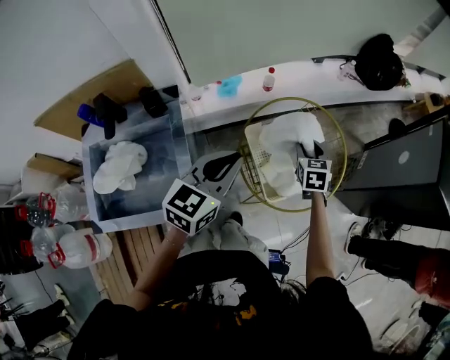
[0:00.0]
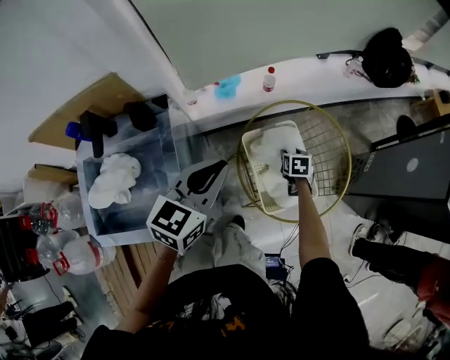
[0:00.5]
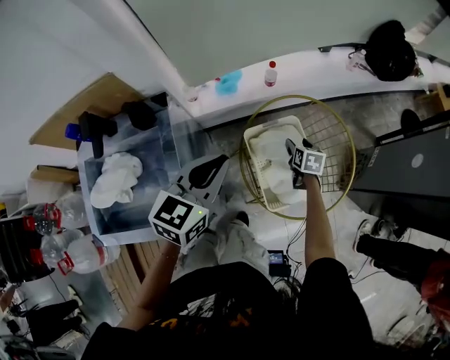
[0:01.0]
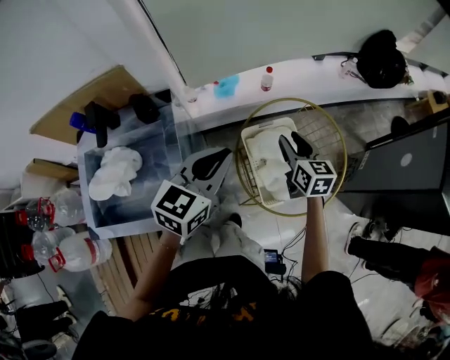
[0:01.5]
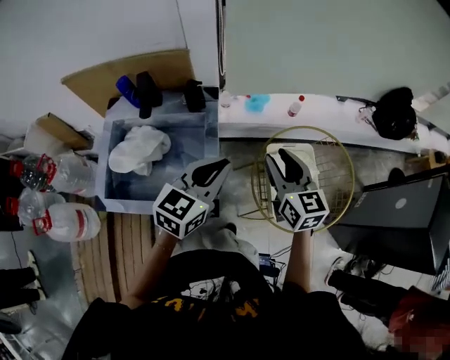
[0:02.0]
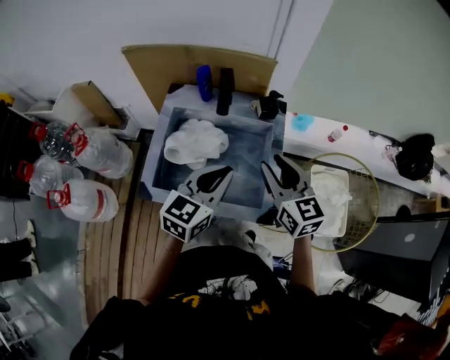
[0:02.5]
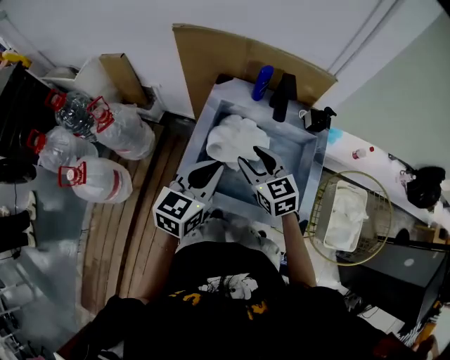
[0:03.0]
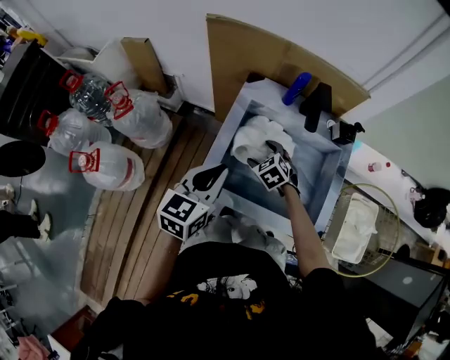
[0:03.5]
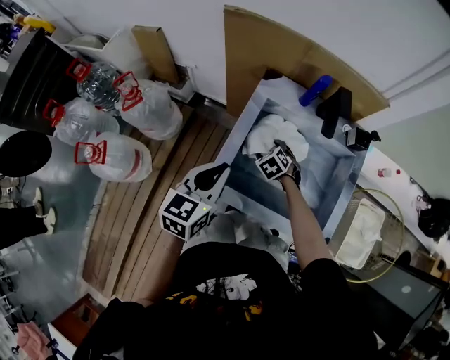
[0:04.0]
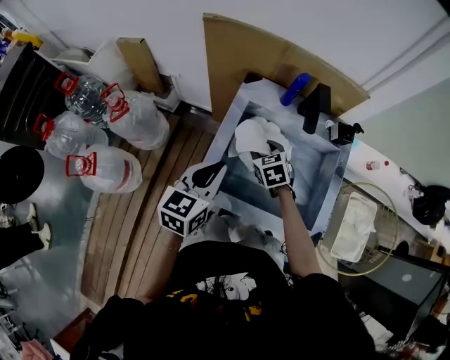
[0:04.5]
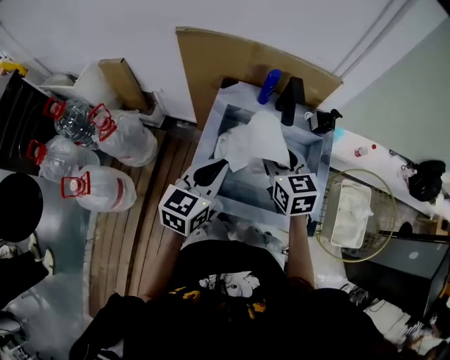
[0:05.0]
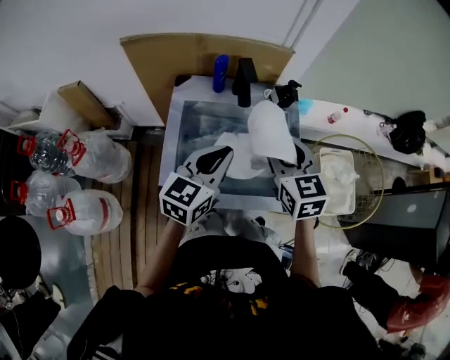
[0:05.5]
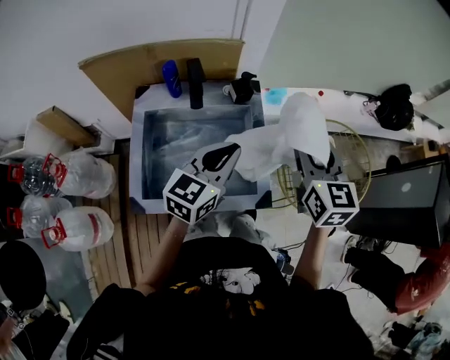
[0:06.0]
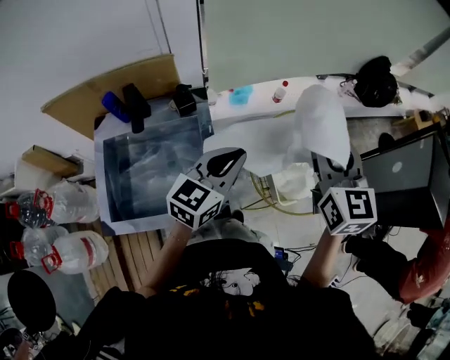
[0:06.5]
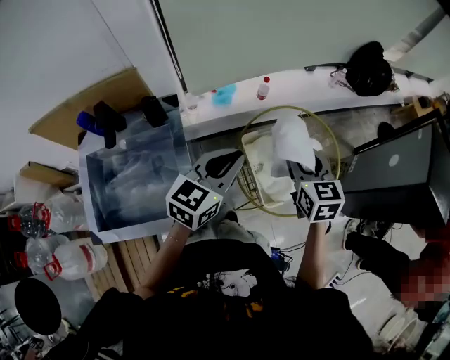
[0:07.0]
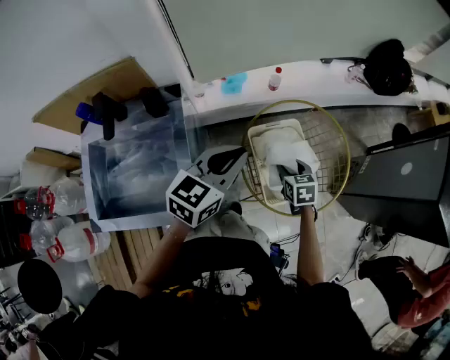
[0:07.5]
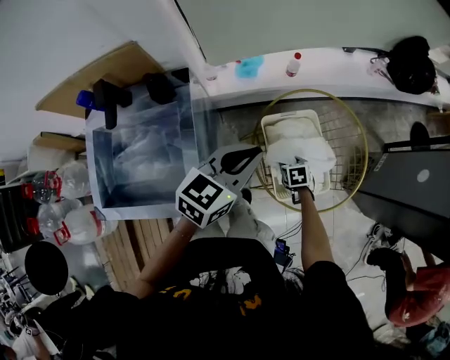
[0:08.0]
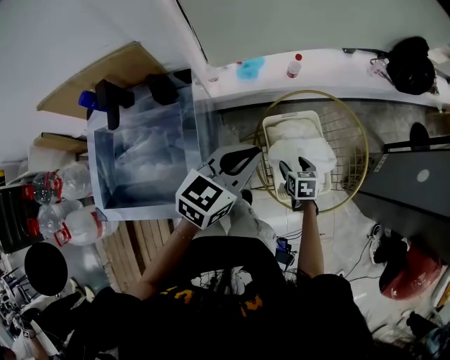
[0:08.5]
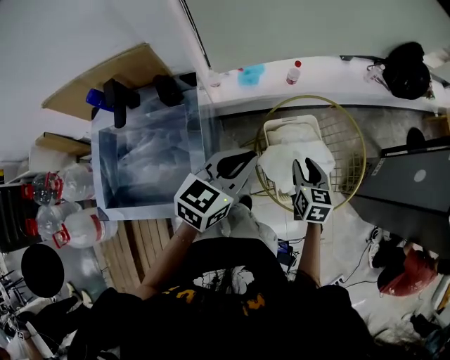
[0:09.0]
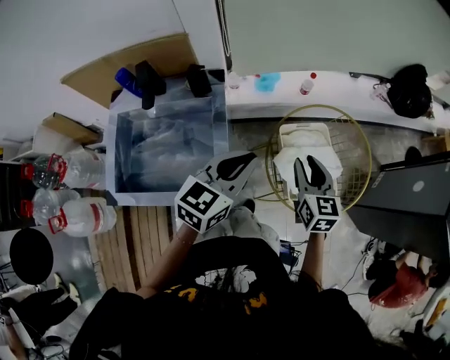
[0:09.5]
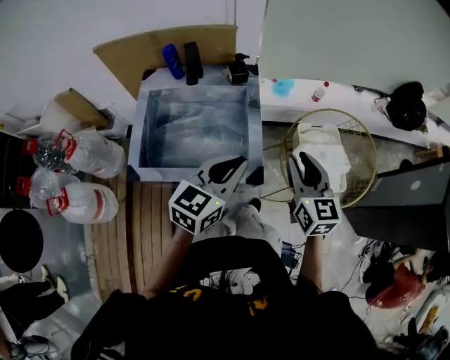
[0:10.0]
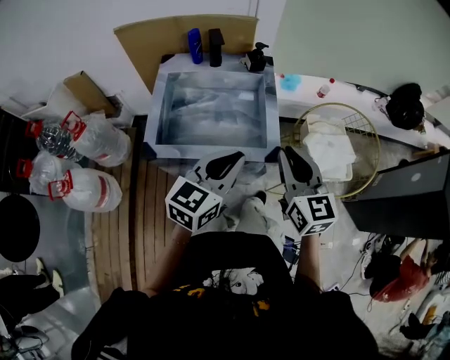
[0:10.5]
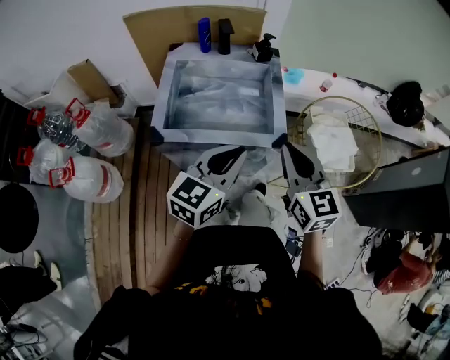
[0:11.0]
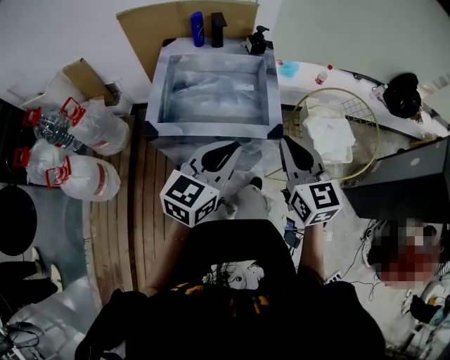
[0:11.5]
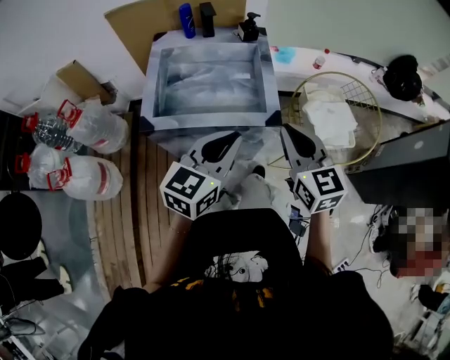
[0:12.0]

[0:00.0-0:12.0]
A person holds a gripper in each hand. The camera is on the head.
0:00.0 to 0:02.0: The right gripper shifts about 30 cm to the left, upward and backward, and changes its angle by about 40 degrees, while the left gripper is displaced to the left by about 10 cm.
0:02.0 to 0:04.0: The pair of grippers is taken some 50 cm. The right gripper tips its fingers downward by about 50 degrees, and opens its fingers; the left gripper rotates approximately 30 degrees.
0:04.0 to 0:06.0: The left gripper moves approximately 30 cm, and changes its angle by approximately 40 degrees. Meanwhile the right gripper heads upward, covering about 40 cm, tilts its fingers some 50 degrees upward, and closes.
0:06.0 to 0:08.0: The right gripper shifts about 50 cm downward and to the right, and angles its fingers downward, by approximately 50 degrees. The left gripper moves to the right and forward, about 35 cm.
0:08.0 to 0:10.0: The left gripper moves backward and to the left, approximately 30 cm. The right gripper moves upward, to the left and backward, some 50 cm, and points its fingers about 50 degrees further upward.
0:10.0 to 0:12.0: The grippers both shift backward and to the left by some 15 cm.

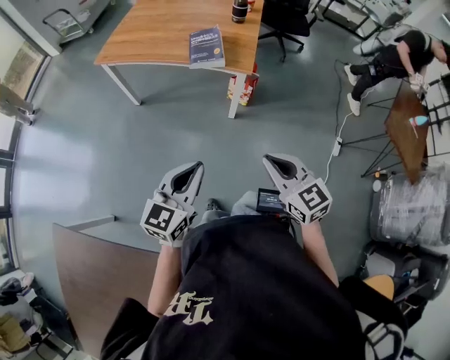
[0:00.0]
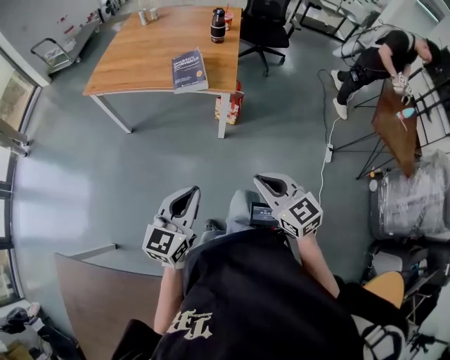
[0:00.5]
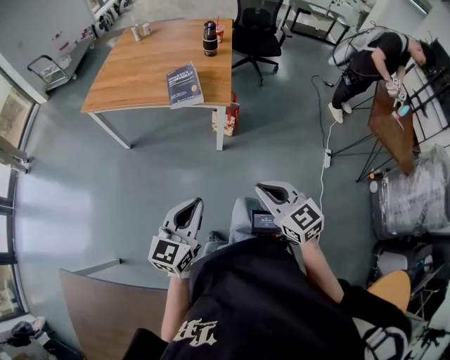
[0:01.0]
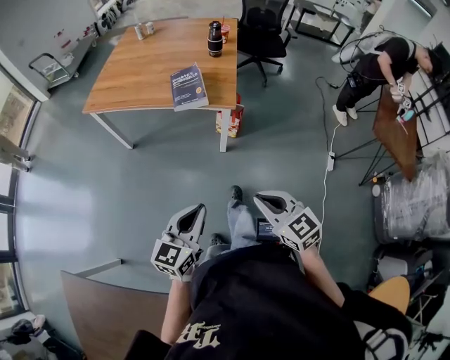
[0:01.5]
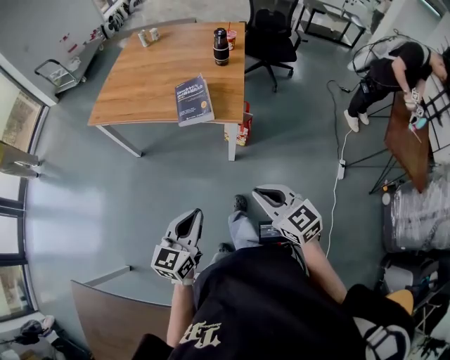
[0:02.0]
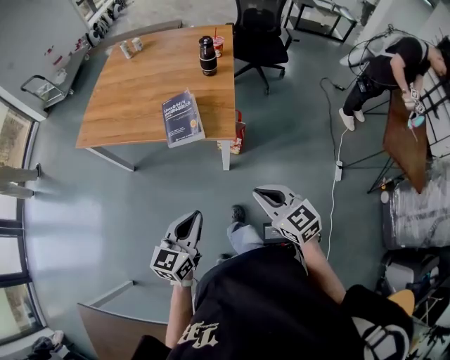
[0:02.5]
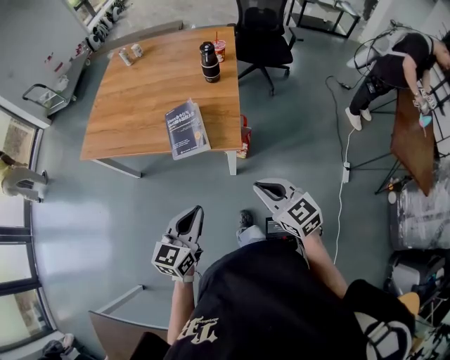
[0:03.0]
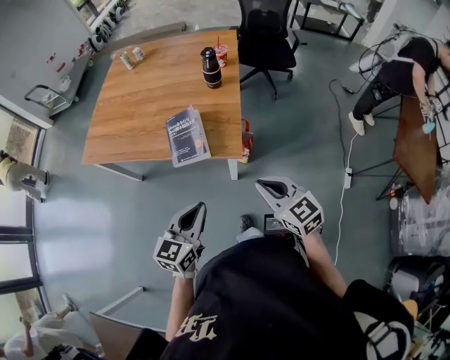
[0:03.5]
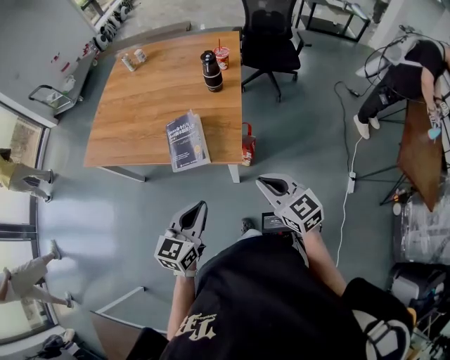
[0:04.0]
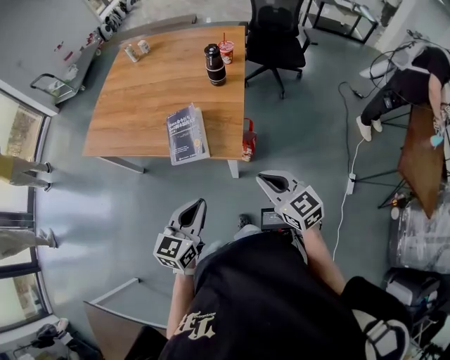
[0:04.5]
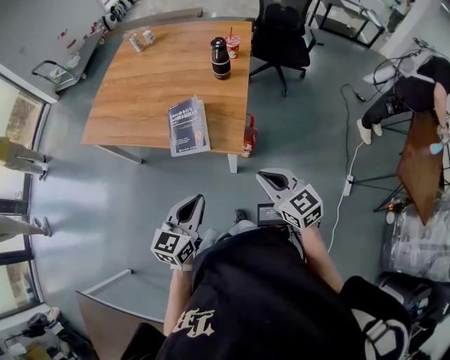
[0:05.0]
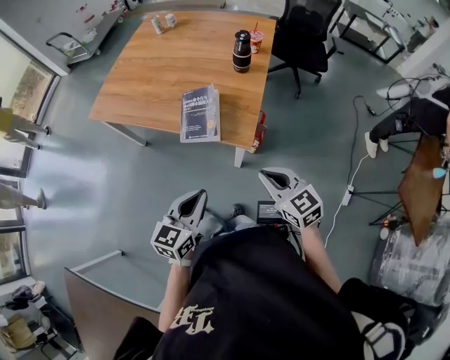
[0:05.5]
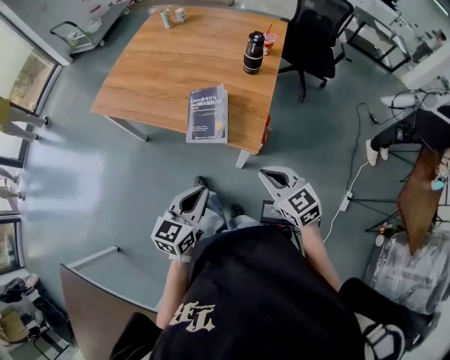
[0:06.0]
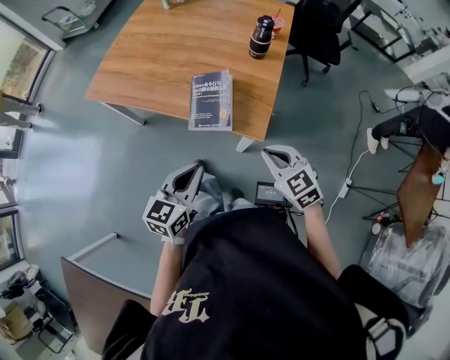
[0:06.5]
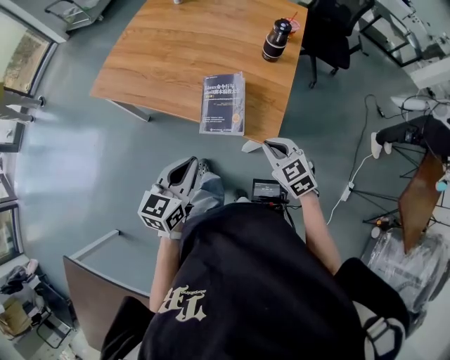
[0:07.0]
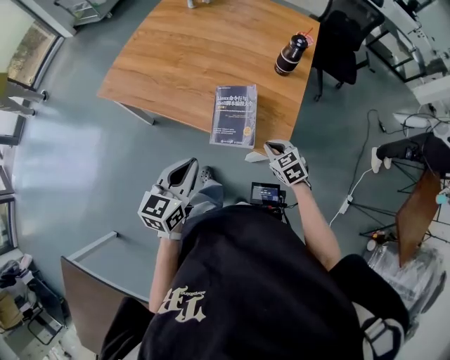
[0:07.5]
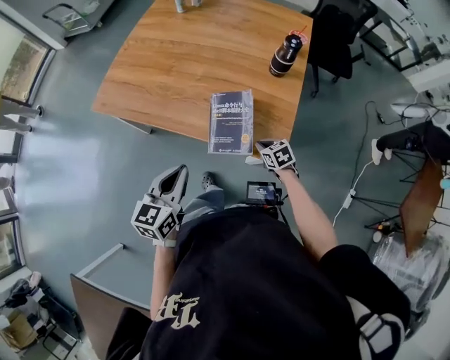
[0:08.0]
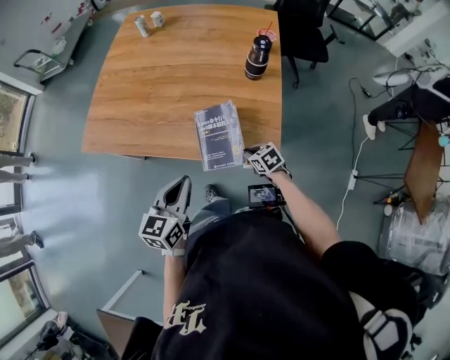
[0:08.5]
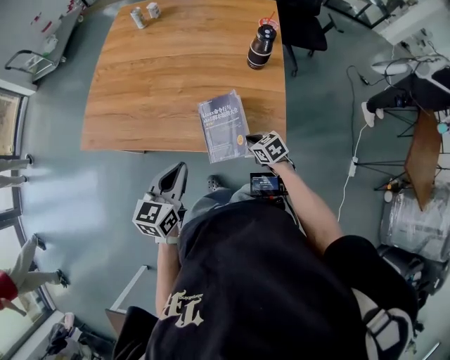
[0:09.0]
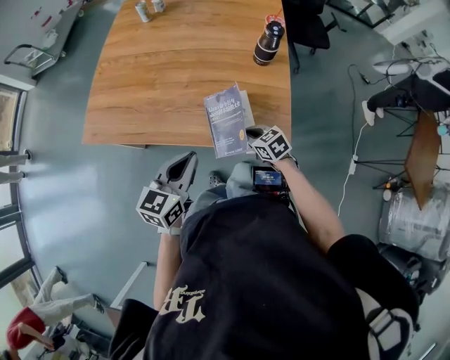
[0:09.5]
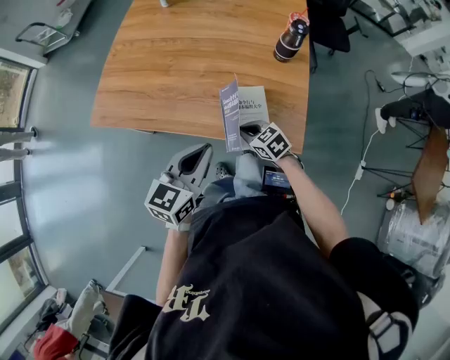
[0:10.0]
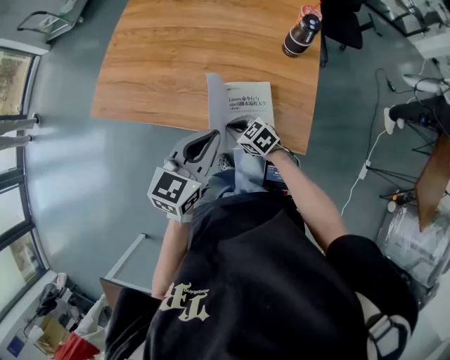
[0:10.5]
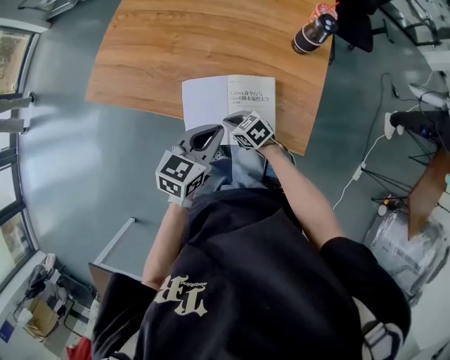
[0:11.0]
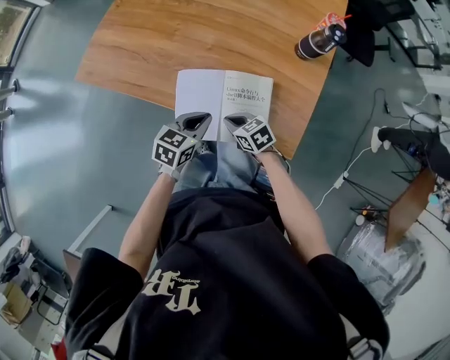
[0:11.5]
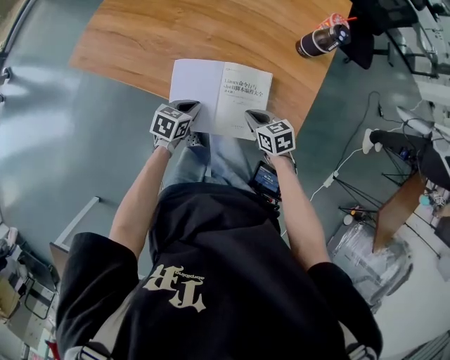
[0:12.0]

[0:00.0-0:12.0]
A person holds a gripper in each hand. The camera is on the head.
0:00.0 to 0:02.0: The grippers both shift forward by about 10 cm.
0:02.0 to 0:04.0: The two grippers go approximately 25 cm forward.
0:04.0 to 0:06.0: The right gripper goes roughly 5 cm to the left.
0:06.0 to 0:08.0: The right gripper shifts approximately 35 cm downward and forward, and turns by roughly 30 degrees, while the left gripper shifts some 25 cm forward and to the left.
0:08.0 to 0:10.0: The left gripper goes roughly 10 cm forward; the right gripper heads to the left and upward, covering roughly 15 cm.
0:10.0 to 0:12.0: The right gripper is displaced to the right and downward by about 10 cm; the left gripper heads downward, covering about 30 cm, and rotates approximately 30 degrees.

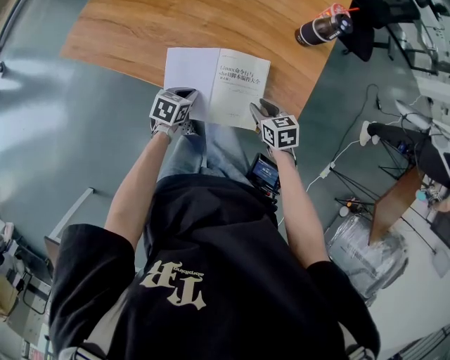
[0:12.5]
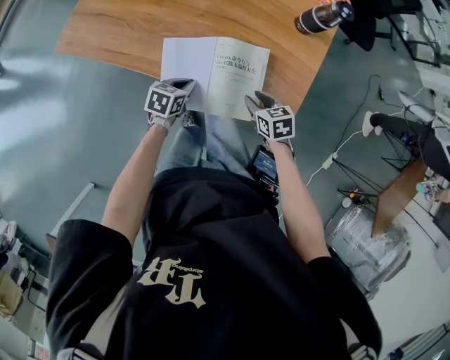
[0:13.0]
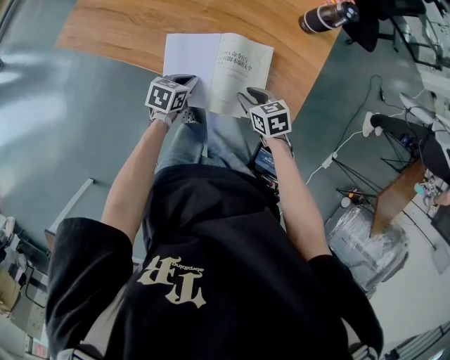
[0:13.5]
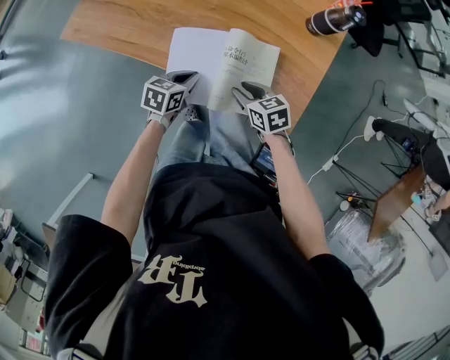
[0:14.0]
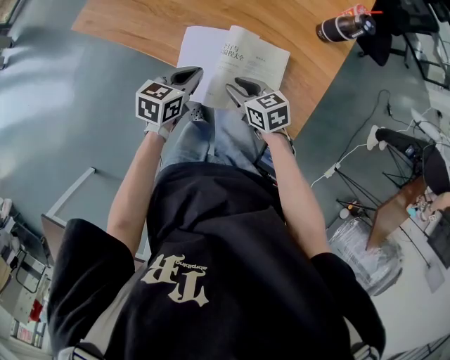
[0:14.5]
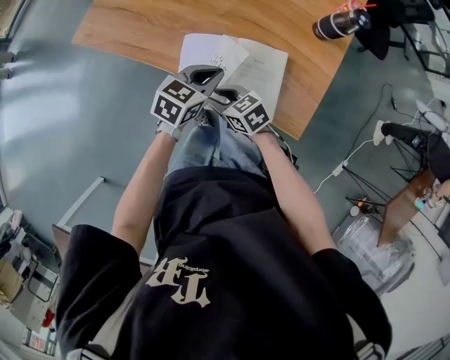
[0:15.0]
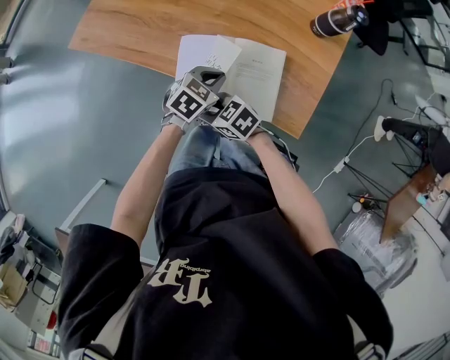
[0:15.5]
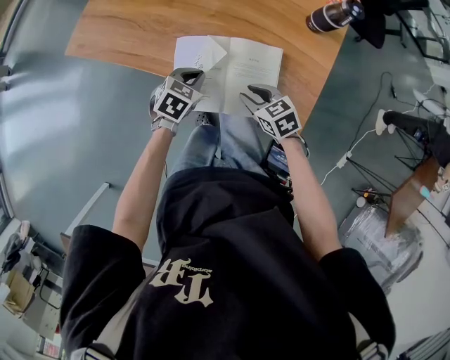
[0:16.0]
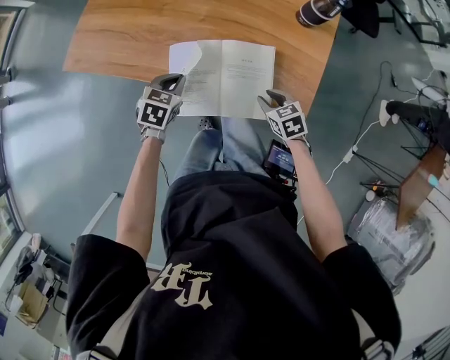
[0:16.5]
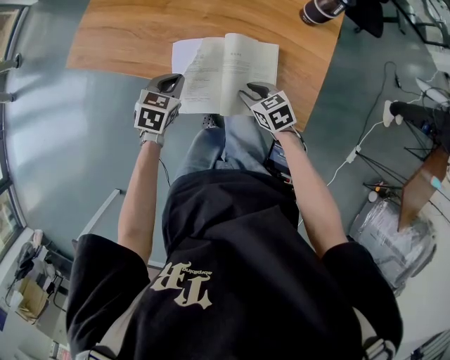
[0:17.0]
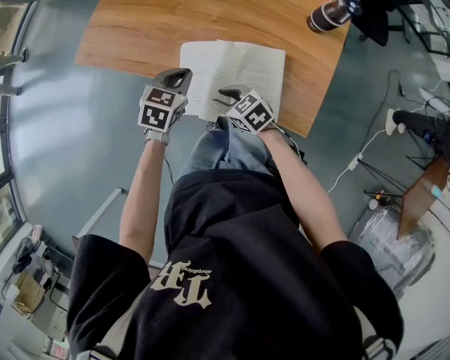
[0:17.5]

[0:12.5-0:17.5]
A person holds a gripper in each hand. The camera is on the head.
0:12.5 to 0:15.0: The right gripper heads to the left, covering some 20 cm, and swivels approximately 30 degrees; the left gripper moves upward, approximately 15 cm, and rotates roughly 20 degrees.
0:15.0 to 0:17.5: The left gripper reaches approximately 10 cm downward, then returns.
